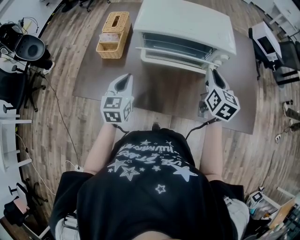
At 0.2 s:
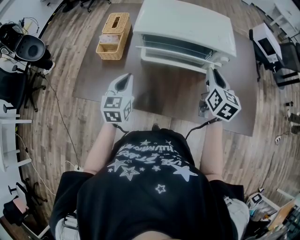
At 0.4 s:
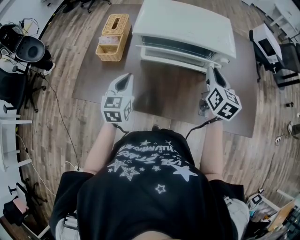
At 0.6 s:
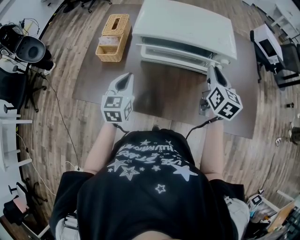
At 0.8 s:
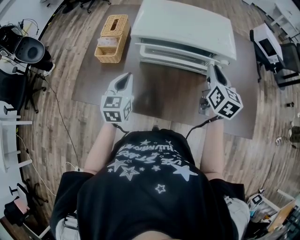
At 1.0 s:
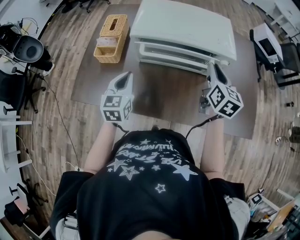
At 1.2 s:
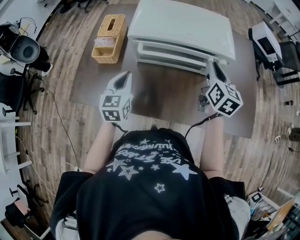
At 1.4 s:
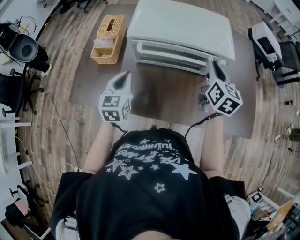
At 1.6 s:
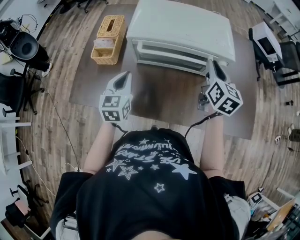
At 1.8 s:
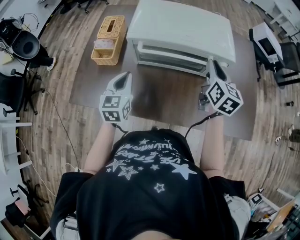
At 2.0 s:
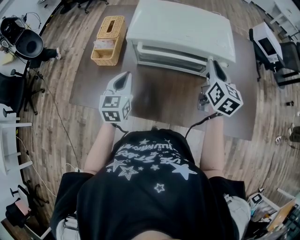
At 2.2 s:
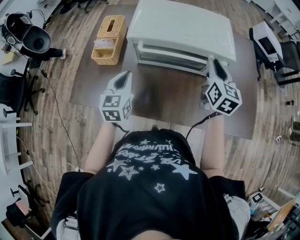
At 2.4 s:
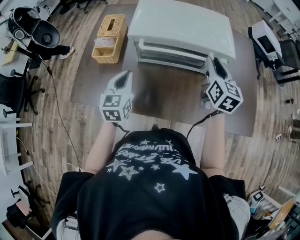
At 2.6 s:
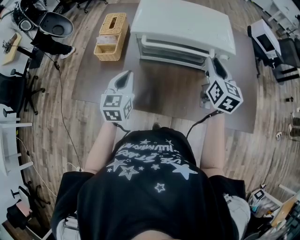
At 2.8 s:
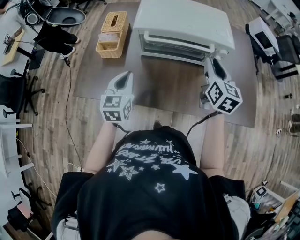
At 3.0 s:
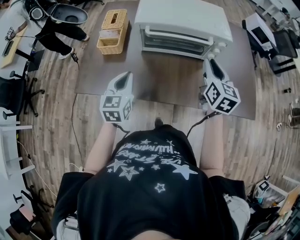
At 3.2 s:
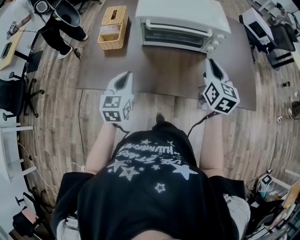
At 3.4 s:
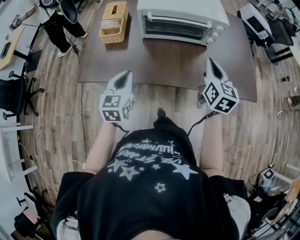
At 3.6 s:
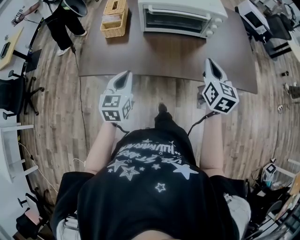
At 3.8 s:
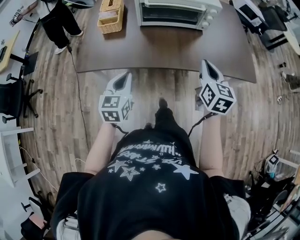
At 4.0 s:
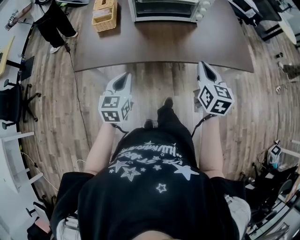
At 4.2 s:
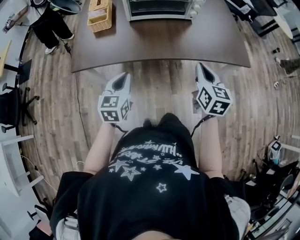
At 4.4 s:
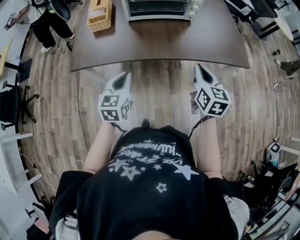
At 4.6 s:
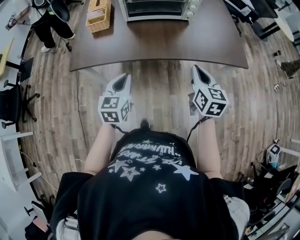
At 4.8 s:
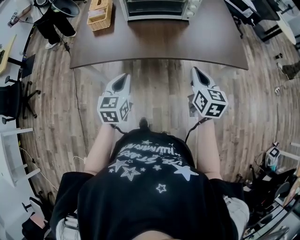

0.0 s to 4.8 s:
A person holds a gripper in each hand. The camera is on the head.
0.0 to 1.6 s: The left gripper moves roughly 5 cm, while the right gripper goes some 5 cm forward.
1.6 to 3.2 s: Both grippers move backward, approximately 15 cm.
3.2 to 4.8 s: The right gripper moves backward, roughly 25 cm, while the left gripper shifts roughly 20 cm backward and to the right.

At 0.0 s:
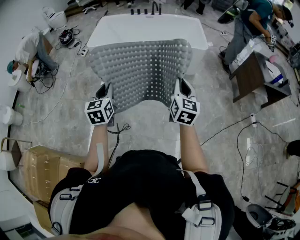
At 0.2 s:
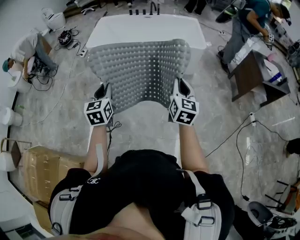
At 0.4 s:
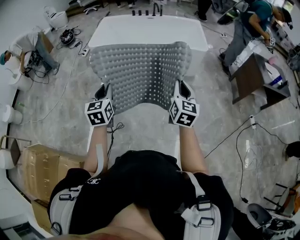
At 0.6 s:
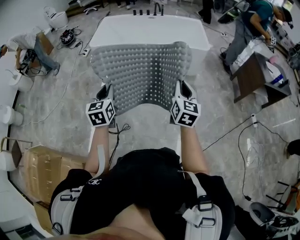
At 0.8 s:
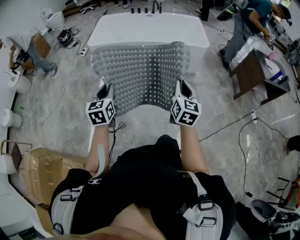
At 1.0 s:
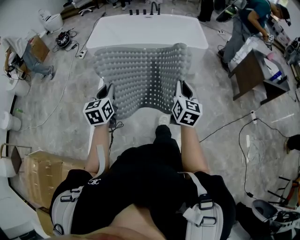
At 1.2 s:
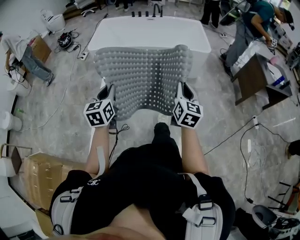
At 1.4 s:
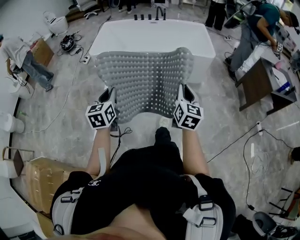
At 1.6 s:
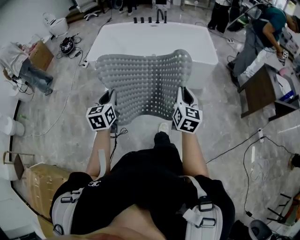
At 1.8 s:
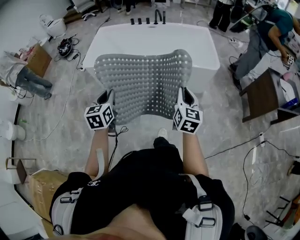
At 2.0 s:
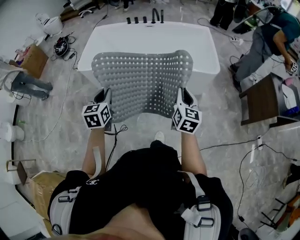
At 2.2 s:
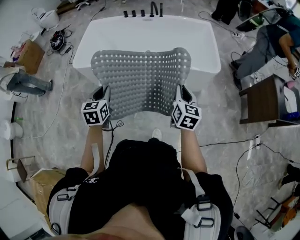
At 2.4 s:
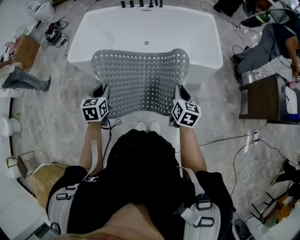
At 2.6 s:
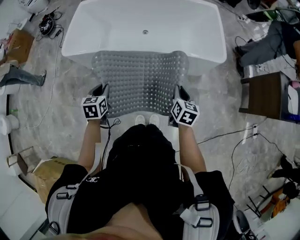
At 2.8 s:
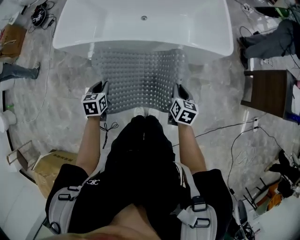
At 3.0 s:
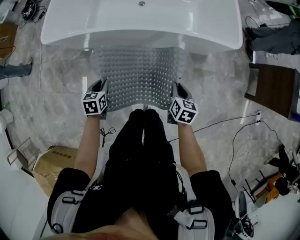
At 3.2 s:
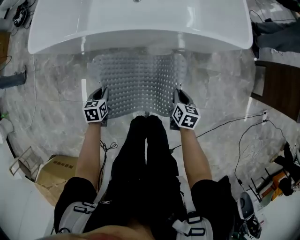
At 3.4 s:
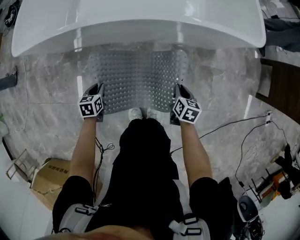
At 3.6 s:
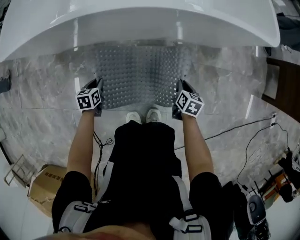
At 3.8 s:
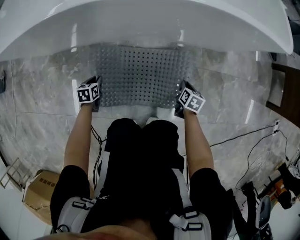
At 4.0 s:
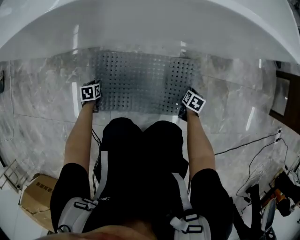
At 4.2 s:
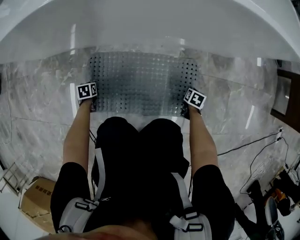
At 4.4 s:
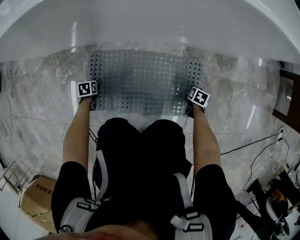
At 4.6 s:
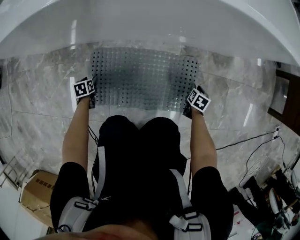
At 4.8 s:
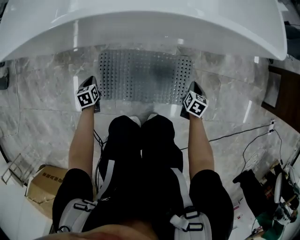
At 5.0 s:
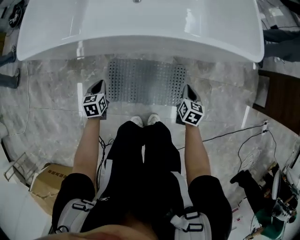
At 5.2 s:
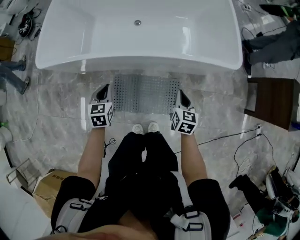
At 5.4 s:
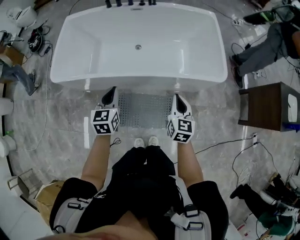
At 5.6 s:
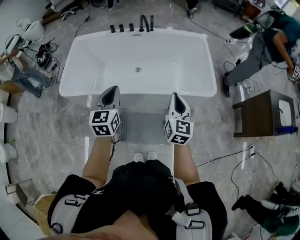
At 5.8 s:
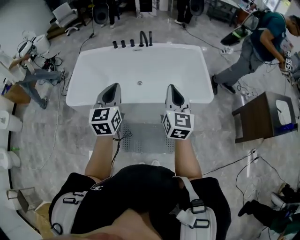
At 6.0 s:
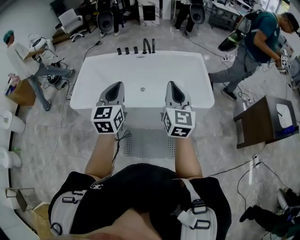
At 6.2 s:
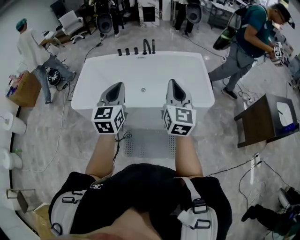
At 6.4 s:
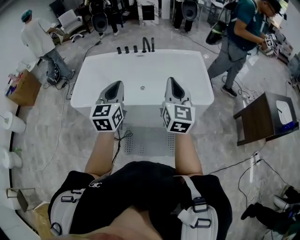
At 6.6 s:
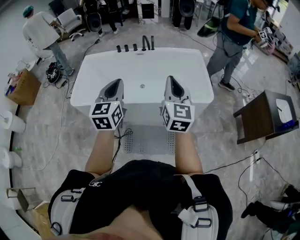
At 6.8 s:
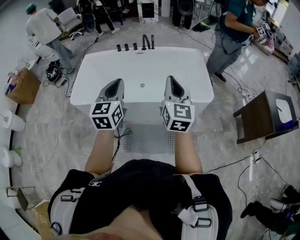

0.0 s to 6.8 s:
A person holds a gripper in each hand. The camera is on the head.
0.0 to 1.4 s: The two grippers go approximately 10 cm forward.
1.4 to 2.8 s: Both grippers move forward and downward, approximately 40 cm. The right gripper tilts its fingers approximately 30 degrees downward, while the left gripper tips its fingers downward by roughly 30 degrees.
2.8 to 4.0 s: Both grippers travel together downward, roughly 70 cm. The right gripper turns by roughly 30 degrees. Meanwhile the left gripper turns by approximately 20 degrees.
4.0 to 5.4 s: Both grippers travel together upward, approximately 80 cm. The right gripper points its fingers some 50 degrees further upward, and opens, then closes once more. The left gripper points its fingers about 50 degrees further upward, and closes its fingers.
5.4 to 6.8 s: Both grippers move upward, about 30 cm. The right gripper changes its angle by some 30 degrees, while the left gripper turns by some 20 degrees.

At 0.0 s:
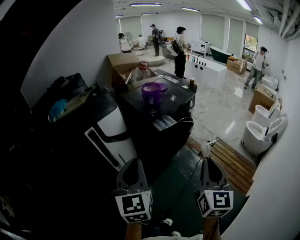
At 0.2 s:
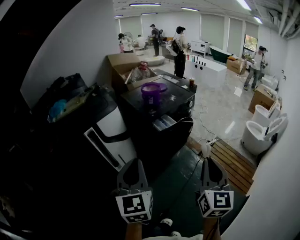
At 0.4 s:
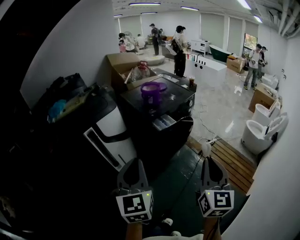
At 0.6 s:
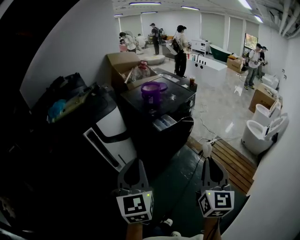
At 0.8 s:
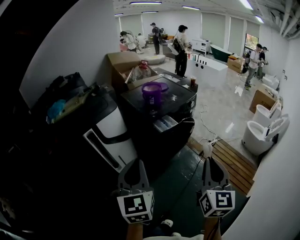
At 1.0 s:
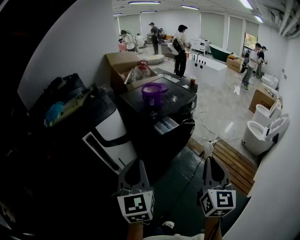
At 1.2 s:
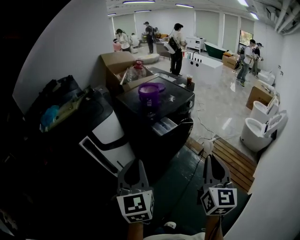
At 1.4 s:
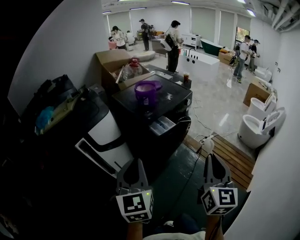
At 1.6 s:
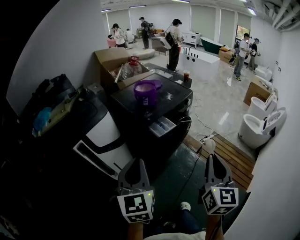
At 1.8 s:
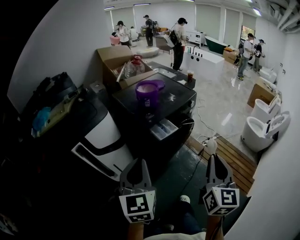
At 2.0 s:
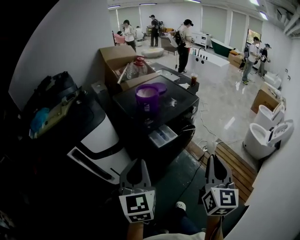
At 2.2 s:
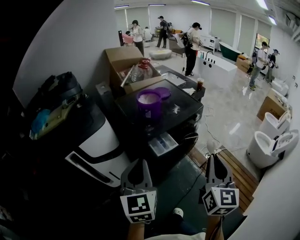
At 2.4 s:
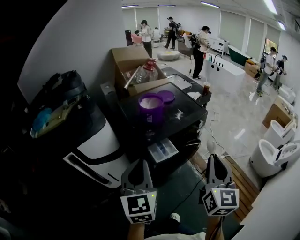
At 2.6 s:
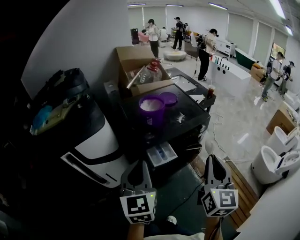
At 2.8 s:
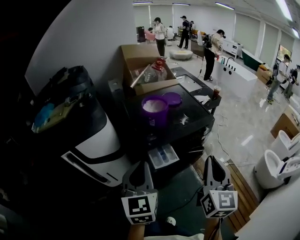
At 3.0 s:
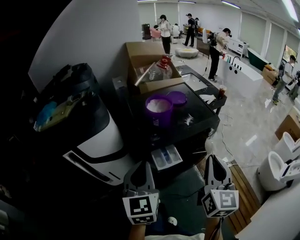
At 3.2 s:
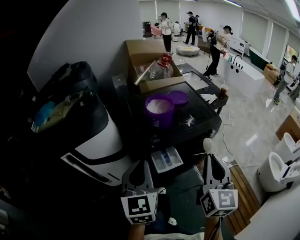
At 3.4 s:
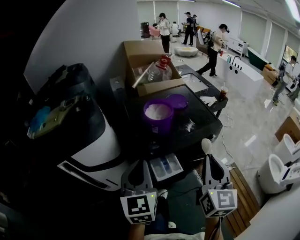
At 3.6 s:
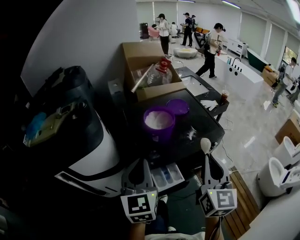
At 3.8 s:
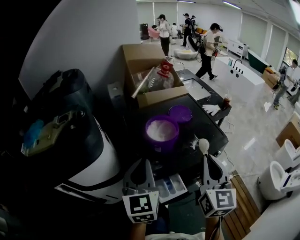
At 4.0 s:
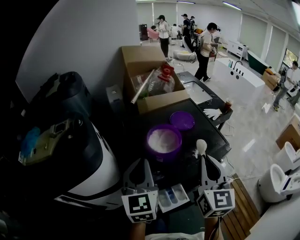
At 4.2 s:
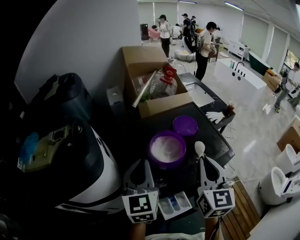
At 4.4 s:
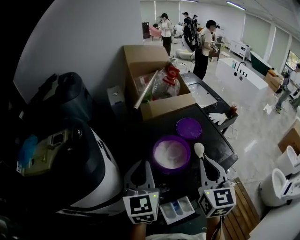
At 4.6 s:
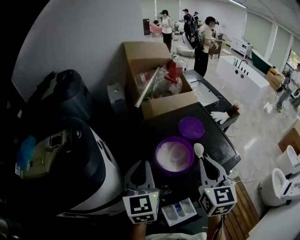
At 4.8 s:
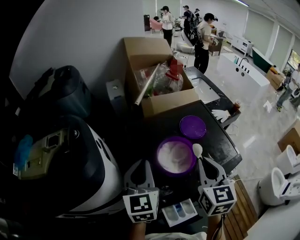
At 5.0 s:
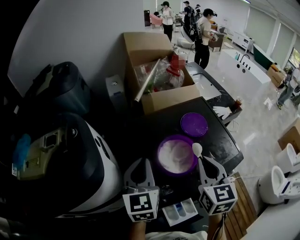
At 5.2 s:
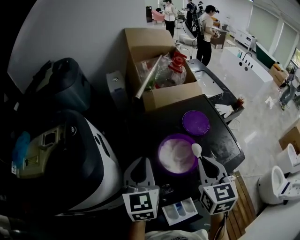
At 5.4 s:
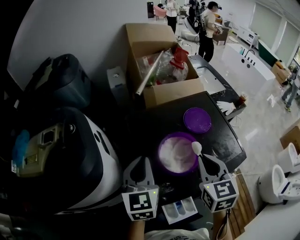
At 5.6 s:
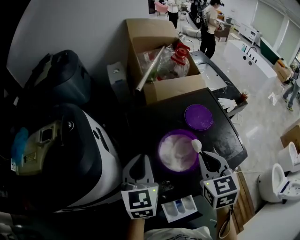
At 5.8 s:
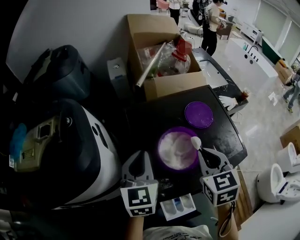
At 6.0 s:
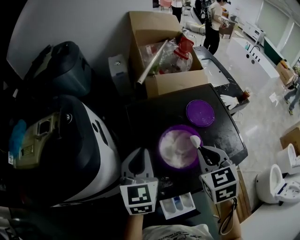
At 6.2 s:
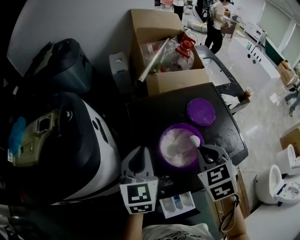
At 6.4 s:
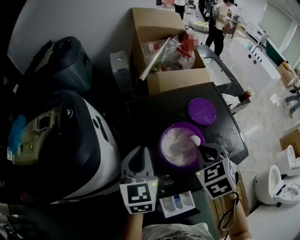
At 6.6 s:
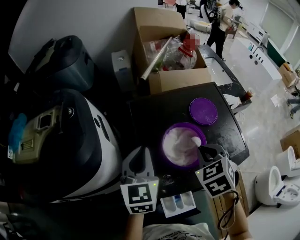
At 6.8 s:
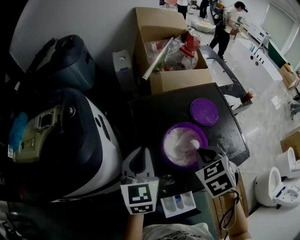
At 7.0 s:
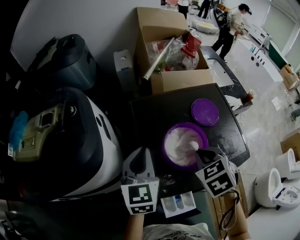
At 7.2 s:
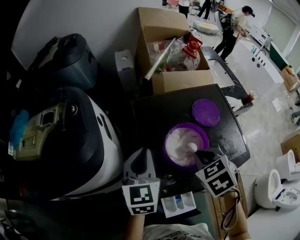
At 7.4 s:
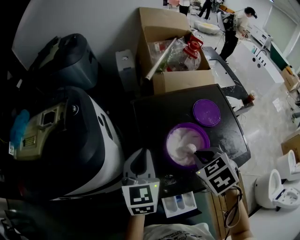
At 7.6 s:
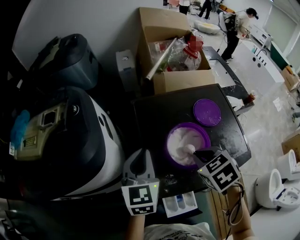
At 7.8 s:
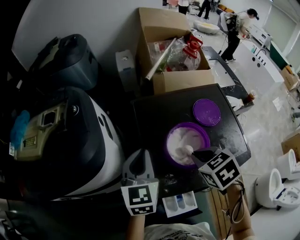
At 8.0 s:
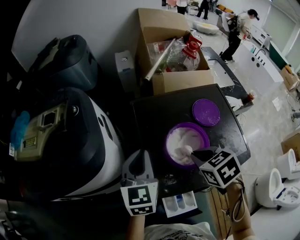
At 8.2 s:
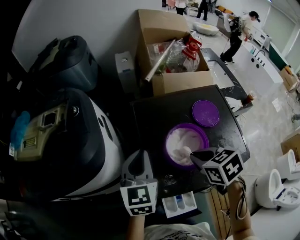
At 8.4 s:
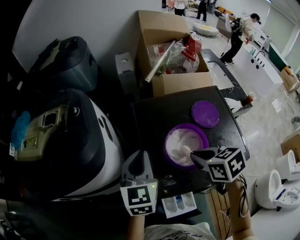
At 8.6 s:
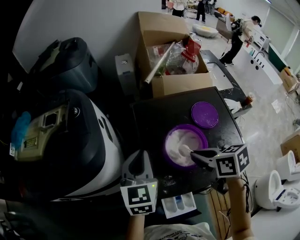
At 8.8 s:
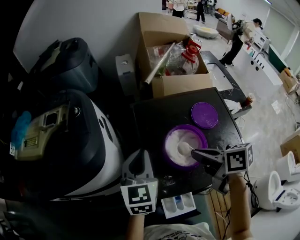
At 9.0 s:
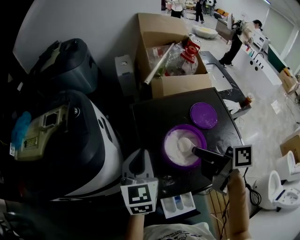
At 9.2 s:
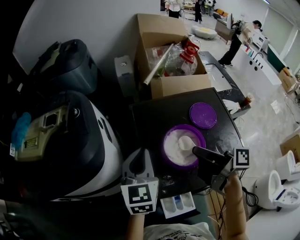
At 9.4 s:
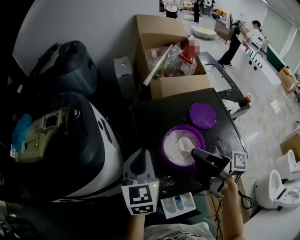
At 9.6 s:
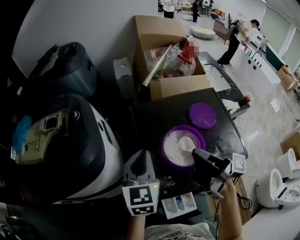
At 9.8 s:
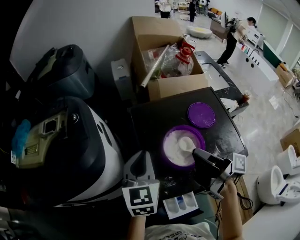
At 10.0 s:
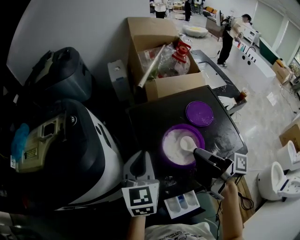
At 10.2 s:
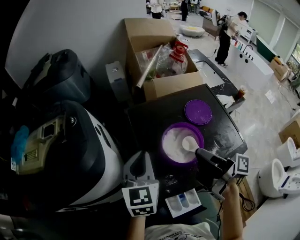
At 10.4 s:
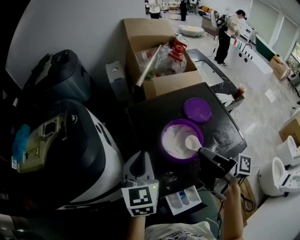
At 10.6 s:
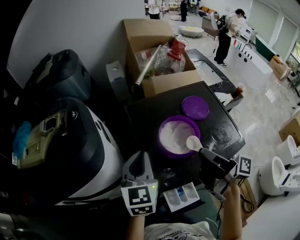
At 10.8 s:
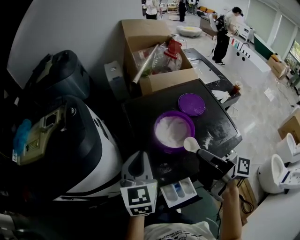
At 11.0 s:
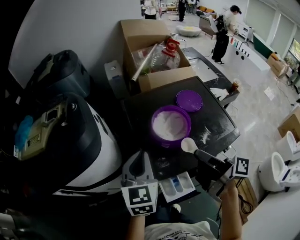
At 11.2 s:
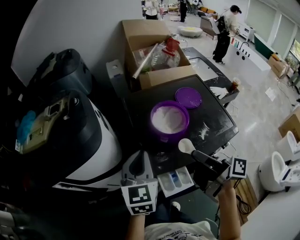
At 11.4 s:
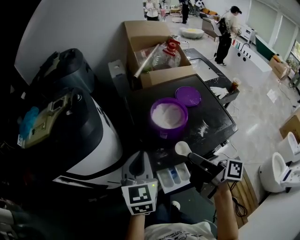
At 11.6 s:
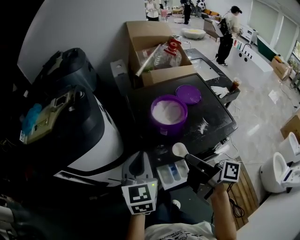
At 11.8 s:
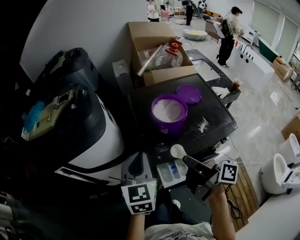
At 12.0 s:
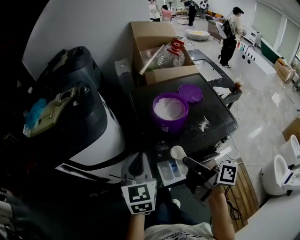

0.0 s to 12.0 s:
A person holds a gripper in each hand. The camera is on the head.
0.0 to 1.6 s: The grippers both shift forward by roughly 10 cm.
1.6 to 3.0 s: The right gripper heads forward, covering about 30 cm, and swivels about 20 degrees. Meanwhile the left gripper is displaced forward and to the right by about 25 cm.
3.0 to 4.4 s: The two grippers go roughly 30 cm forward.
4.4 to 6.0 s: The grippers both shift downward and forward by roughly 10 cm. The right gripper swivels roughly 40 degrees.
6.0 to 7.6 s: The right gripper changes place by approximately 5 cm, and changes its angle by roughly 30 degrees.
7.6 to 9.0 s: The right gripper is displaced upward by roughly 5 cm, and tilts its fingers approximately 40 degrees upward.
9.0 to 10.4 s: The right gripper turns by approximately 30 degrees.
10.4 to 12.0 s: The grippers both shift backward by approximately 15 cm.
